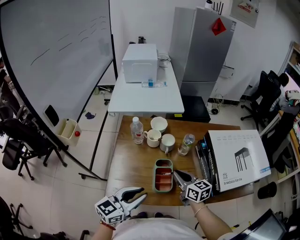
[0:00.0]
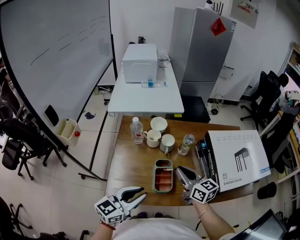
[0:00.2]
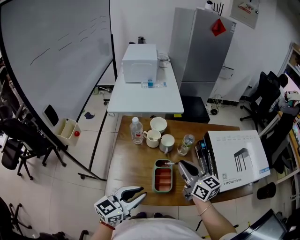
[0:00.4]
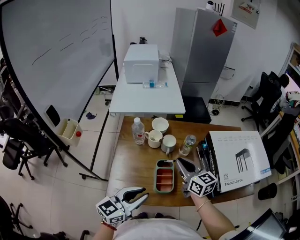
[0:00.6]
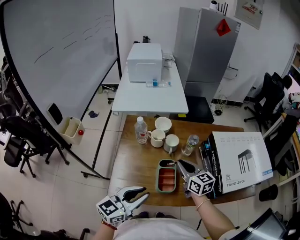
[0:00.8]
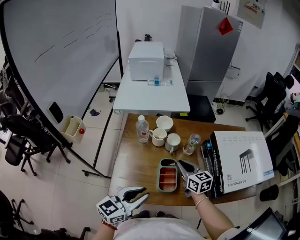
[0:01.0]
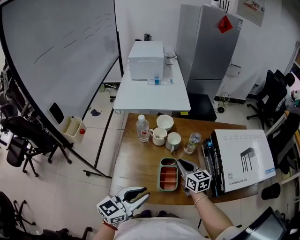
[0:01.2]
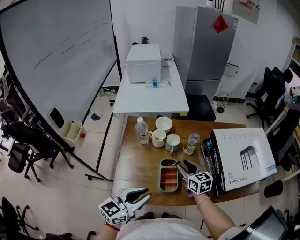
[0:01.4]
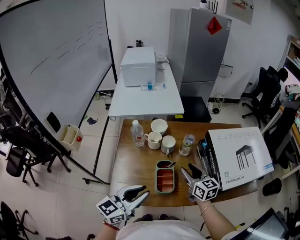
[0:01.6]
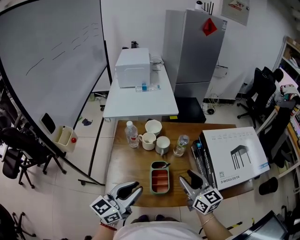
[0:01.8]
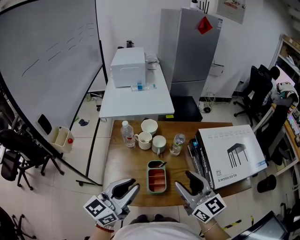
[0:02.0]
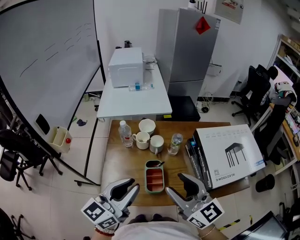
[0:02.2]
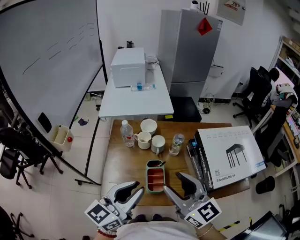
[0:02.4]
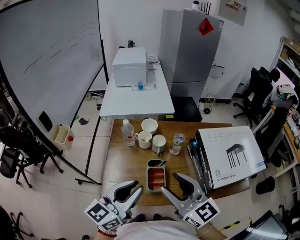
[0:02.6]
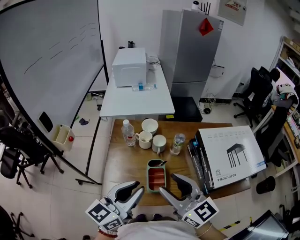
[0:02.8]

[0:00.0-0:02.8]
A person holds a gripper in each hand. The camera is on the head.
0:00.0 to 0:01.4: The right gripper goes upward and returns, about 10 cm each way, and opens up.
0:01.4 to 0:02.8: The left gripper heads upward, covering approximately 10 cm, while the right gripper goes some 25 cm upward and backward, and turns by some 30 degrees.

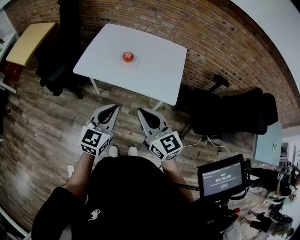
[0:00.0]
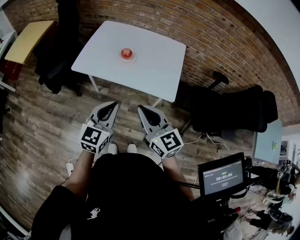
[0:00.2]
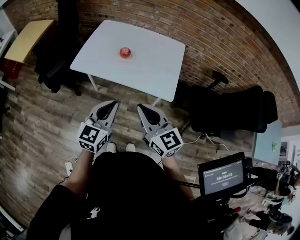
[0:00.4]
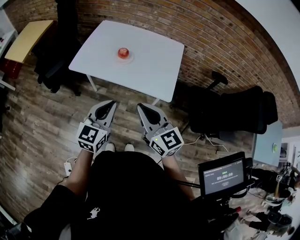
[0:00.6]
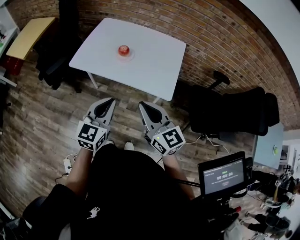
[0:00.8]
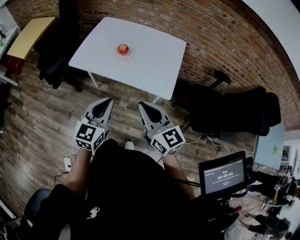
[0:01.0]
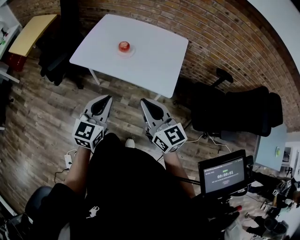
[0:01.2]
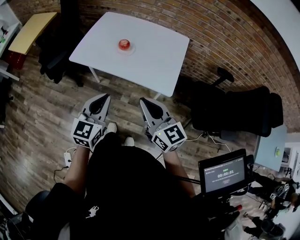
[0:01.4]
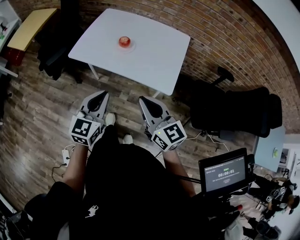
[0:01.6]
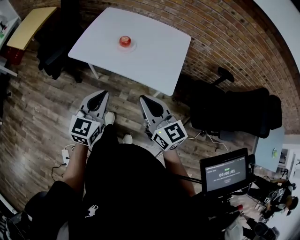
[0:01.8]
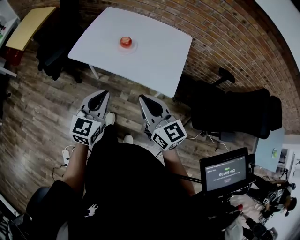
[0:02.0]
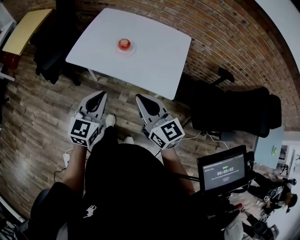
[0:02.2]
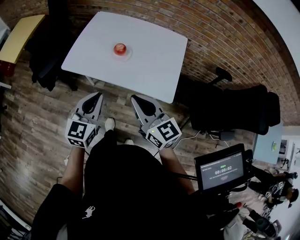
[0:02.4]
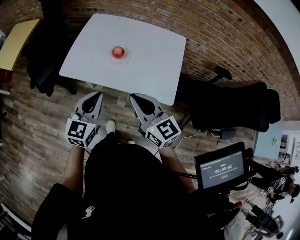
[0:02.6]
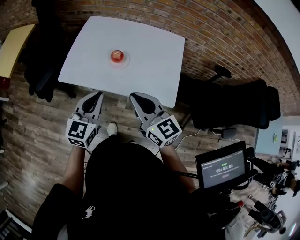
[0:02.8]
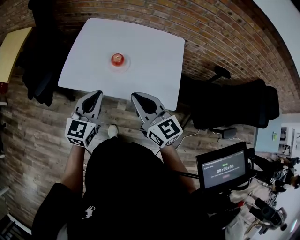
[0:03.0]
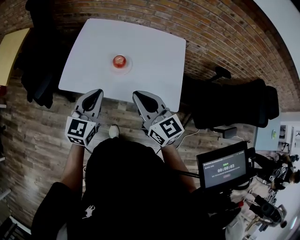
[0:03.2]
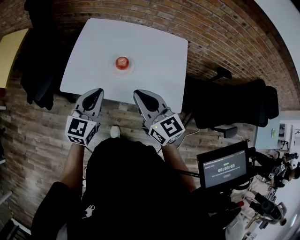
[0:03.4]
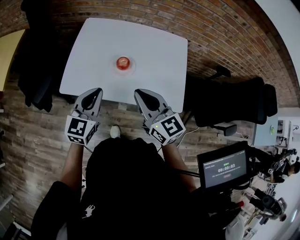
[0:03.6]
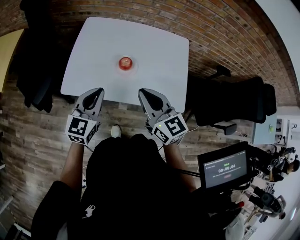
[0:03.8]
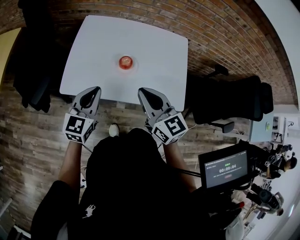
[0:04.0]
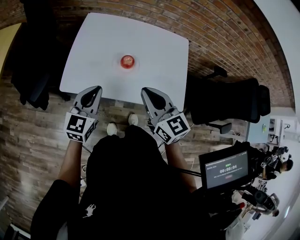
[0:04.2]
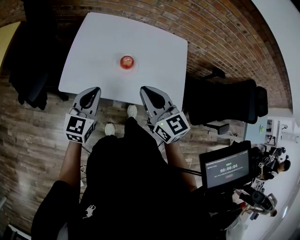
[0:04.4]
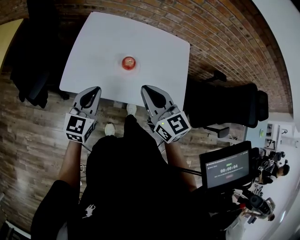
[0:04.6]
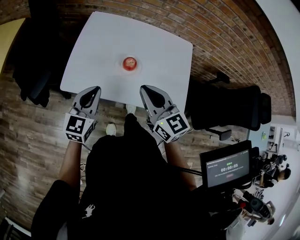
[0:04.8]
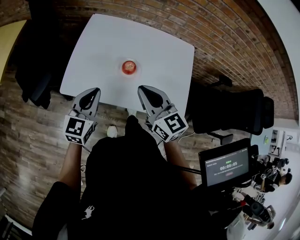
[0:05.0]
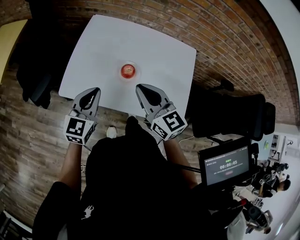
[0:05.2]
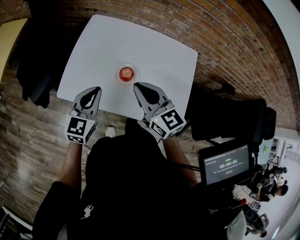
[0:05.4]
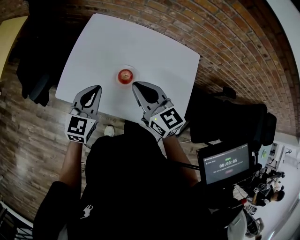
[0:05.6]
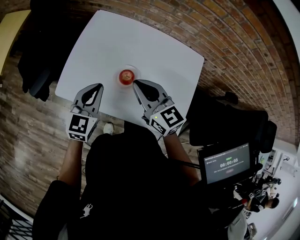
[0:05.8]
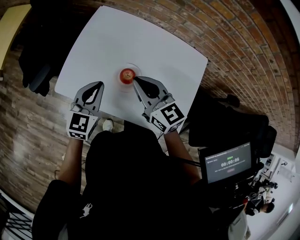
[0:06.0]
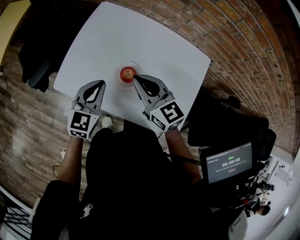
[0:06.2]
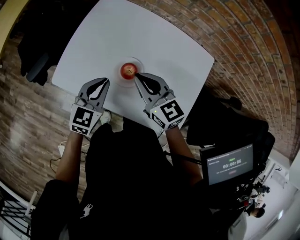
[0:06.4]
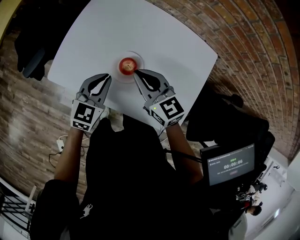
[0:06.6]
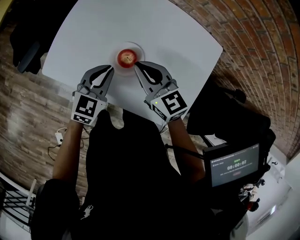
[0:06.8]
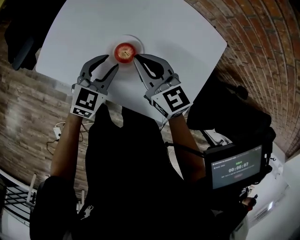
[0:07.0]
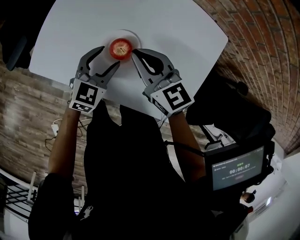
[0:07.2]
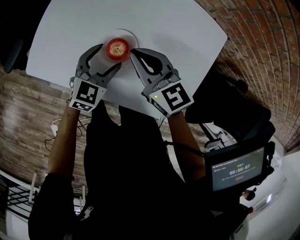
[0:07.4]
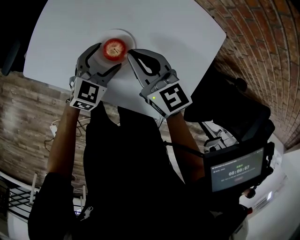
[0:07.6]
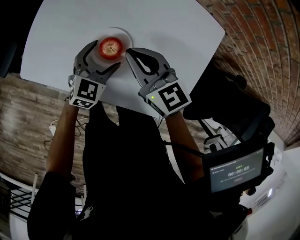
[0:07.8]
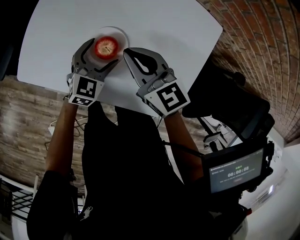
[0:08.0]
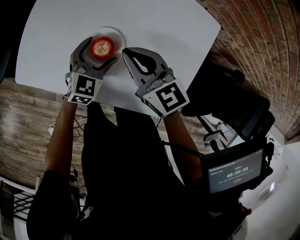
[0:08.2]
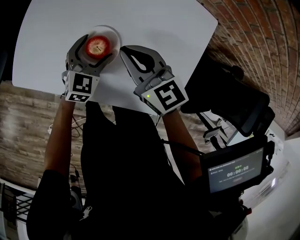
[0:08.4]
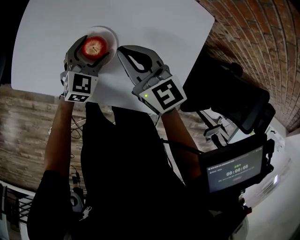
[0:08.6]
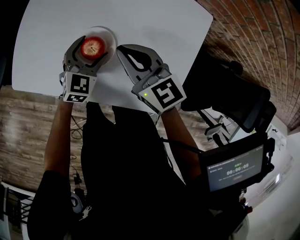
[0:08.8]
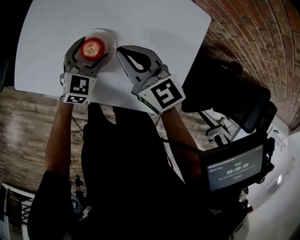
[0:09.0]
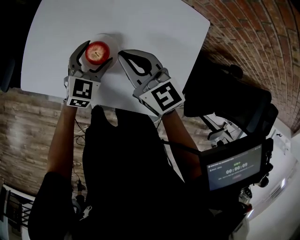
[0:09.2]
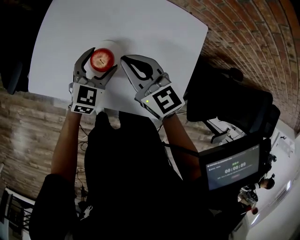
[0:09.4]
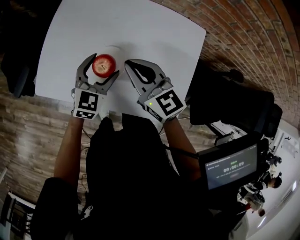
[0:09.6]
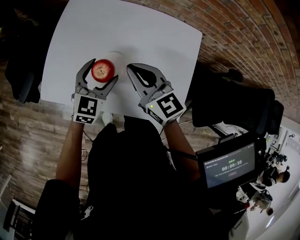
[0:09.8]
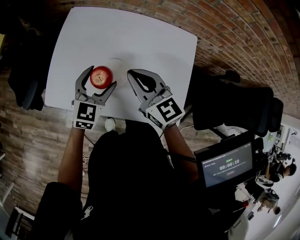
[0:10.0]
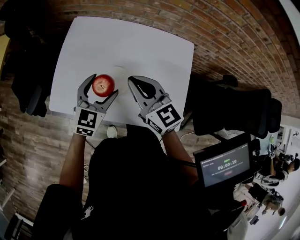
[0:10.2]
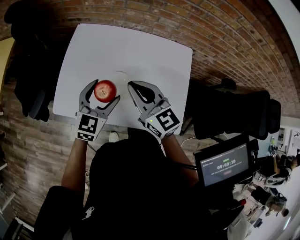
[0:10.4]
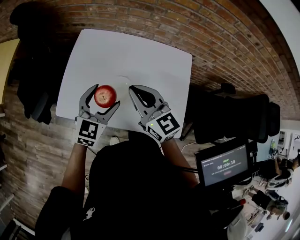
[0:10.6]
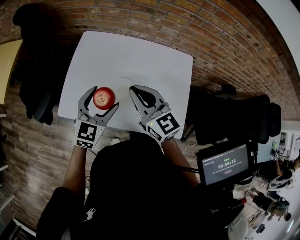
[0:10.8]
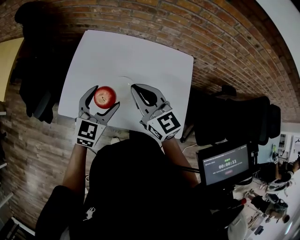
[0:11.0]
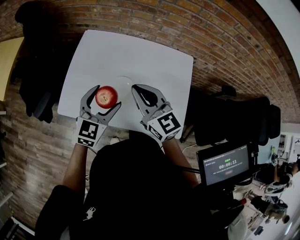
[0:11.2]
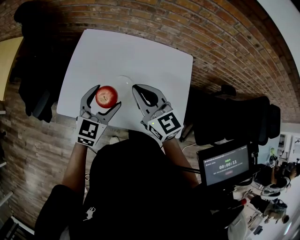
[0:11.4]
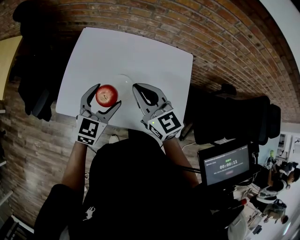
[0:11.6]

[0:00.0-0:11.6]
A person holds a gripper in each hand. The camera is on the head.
0:00.0 to 0:01.4: The right gripper shifts roughly 10 cm to the right.
0:01.4 to 0:02.8: Both grippers travel together forward, approximately 15 cm.
0:02.8 to 0:04.4: The right gripper shifts some 15 cm forward and to the left. Meanwhile the left gripper moves to the left and forward, some 15 cm.
0:04.4 to 0:05.8: The right gripper heads forward, covering roughly 15 cm. Meanwhile the left gripper travels forward and to the right by roughly 10 cm.
0:05.8 to 0:07.2: The left gripper shifts roughly 20 cm downward and to the right, and opens its fingers. Meanwhile the right gripper travels downward and forward by some 15 cm.
0:07.2 to 0:08.8: The left gripper ends up approximately 5 cm from where it was.
0:08.8 to 0:10.2: Both grippers travel together upward, some 15 cm.
0:10.2 to 0:11.6: The left gripper moves about 5 cm.

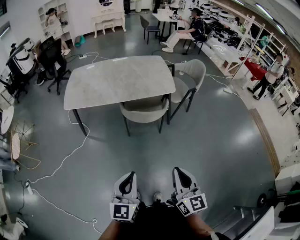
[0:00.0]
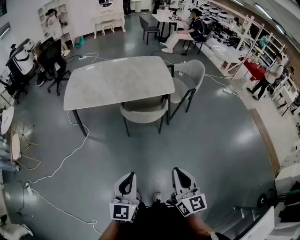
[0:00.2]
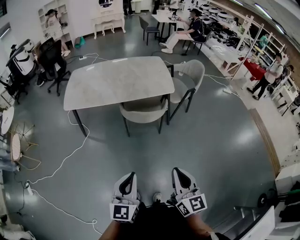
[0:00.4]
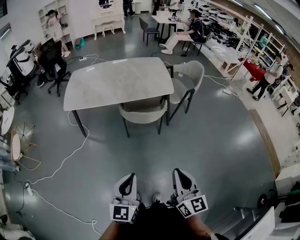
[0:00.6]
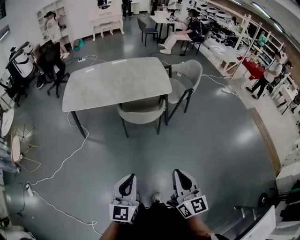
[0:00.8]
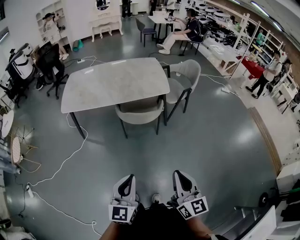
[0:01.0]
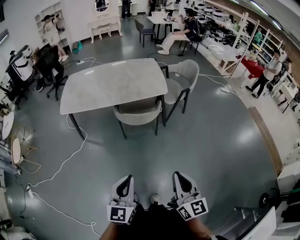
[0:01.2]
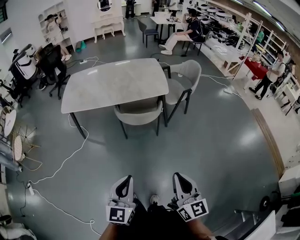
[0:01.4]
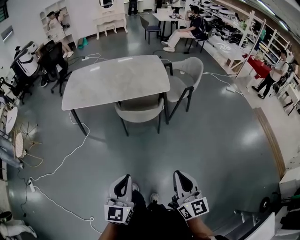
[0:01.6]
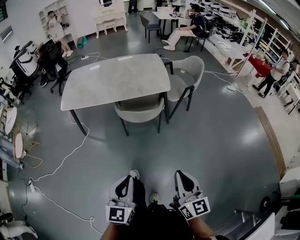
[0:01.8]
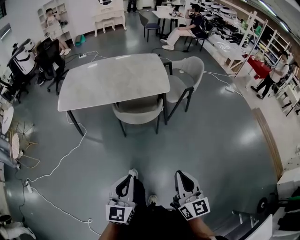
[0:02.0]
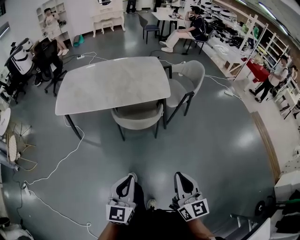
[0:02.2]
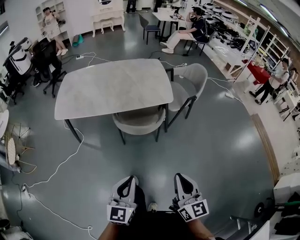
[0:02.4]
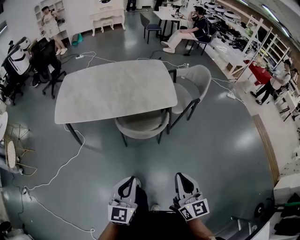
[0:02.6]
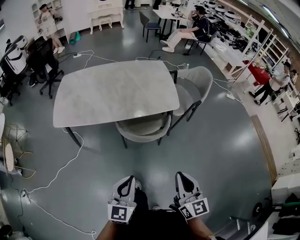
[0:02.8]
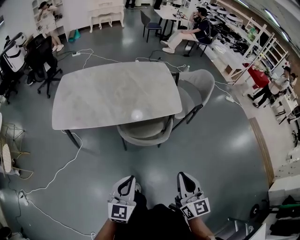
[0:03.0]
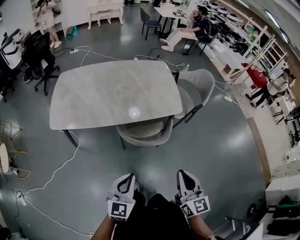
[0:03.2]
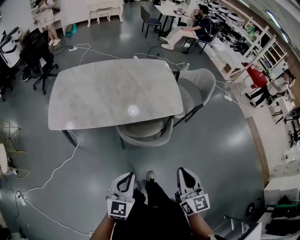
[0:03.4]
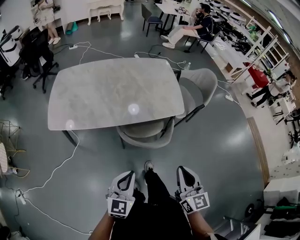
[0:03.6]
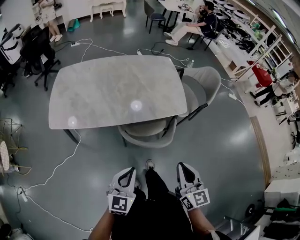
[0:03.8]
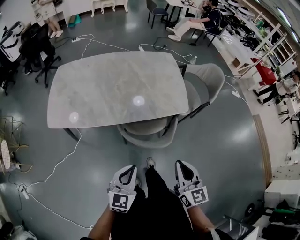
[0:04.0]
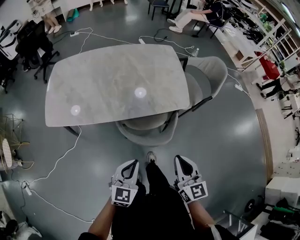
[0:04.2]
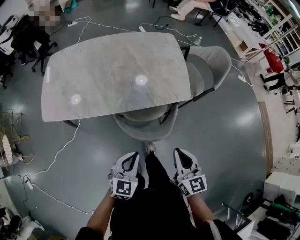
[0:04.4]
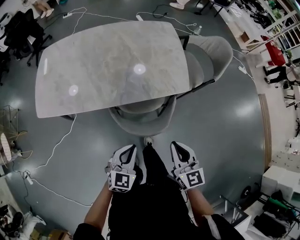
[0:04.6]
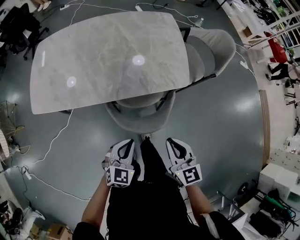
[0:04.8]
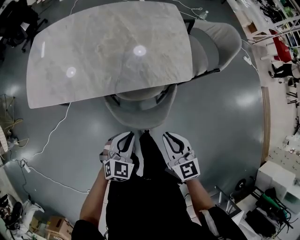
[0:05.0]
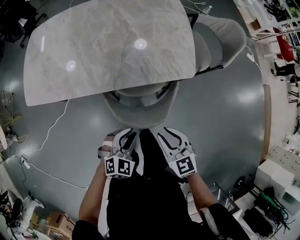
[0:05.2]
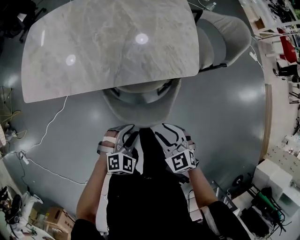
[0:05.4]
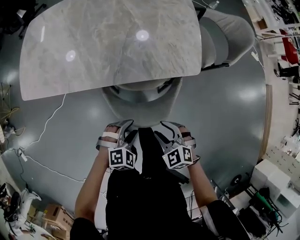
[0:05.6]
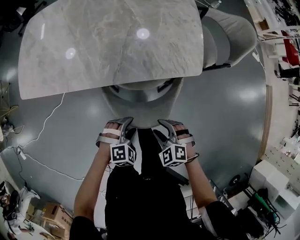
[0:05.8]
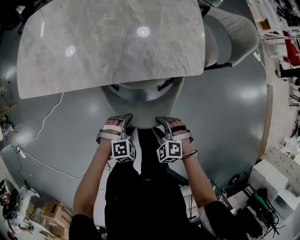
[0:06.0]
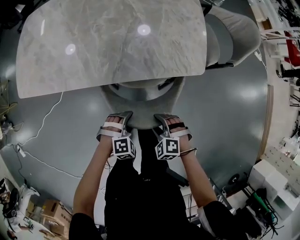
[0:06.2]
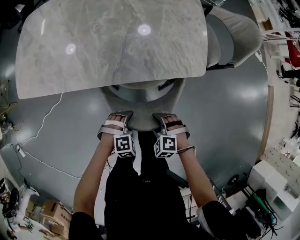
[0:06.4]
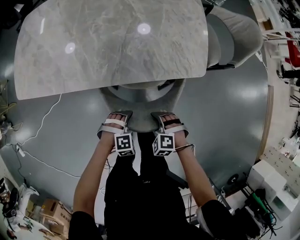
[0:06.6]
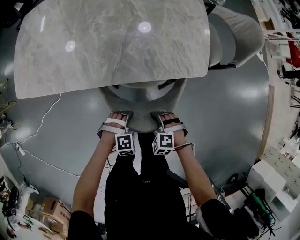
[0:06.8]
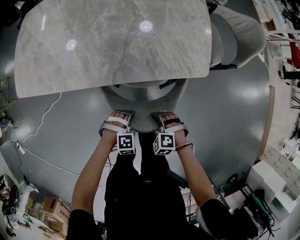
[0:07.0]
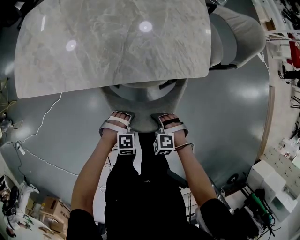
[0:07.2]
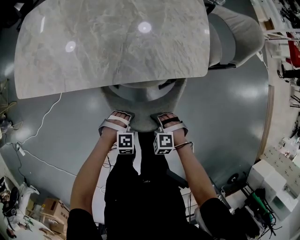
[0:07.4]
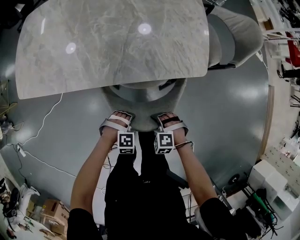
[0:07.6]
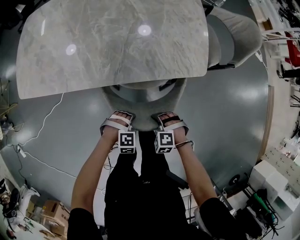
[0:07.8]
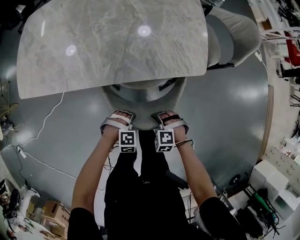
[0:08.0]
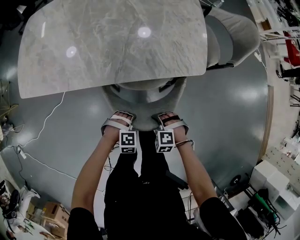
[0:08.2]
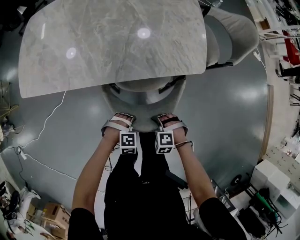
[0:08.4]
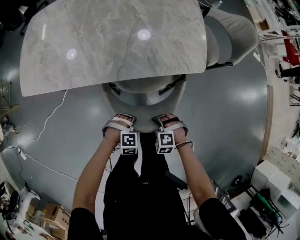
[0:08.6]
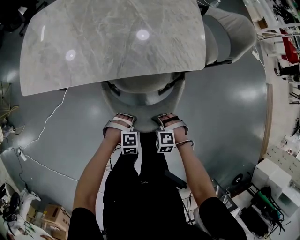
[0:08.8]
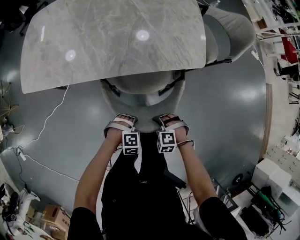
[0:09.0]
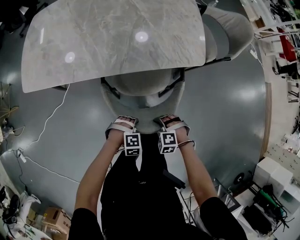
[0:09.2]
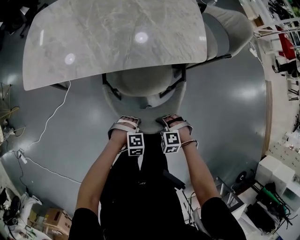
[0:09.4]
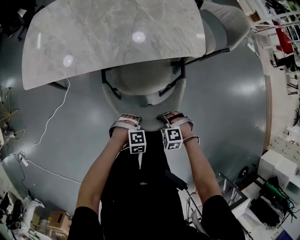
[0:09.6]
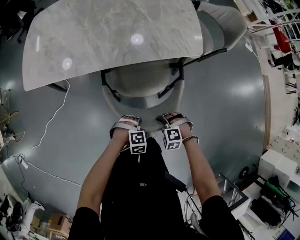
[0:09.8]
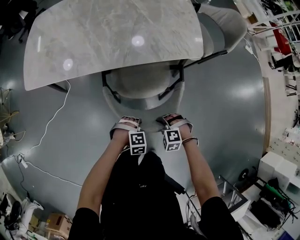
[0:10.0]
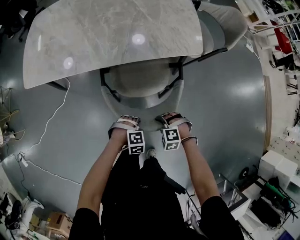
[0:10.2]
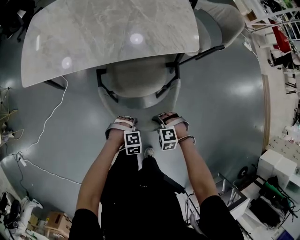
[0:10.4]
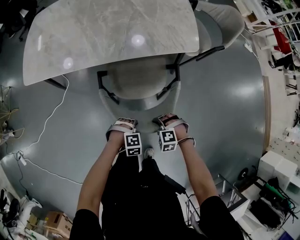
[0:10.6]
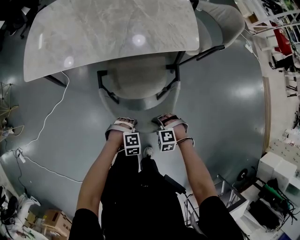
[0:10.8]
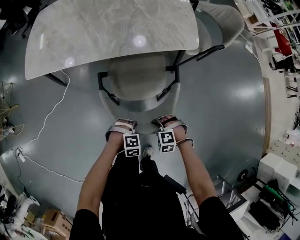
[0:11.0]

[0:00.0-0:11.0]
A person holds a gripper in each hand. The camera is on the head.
0:00.0 to 0:01.6: Both grippers travel together to the right, roughly 10 cm.
0:01.6 to 0:03.2: The grippers both shift forward and to the left by some 30 cm.
0:03.2 to 0:04.8: The two grippers go some 25 cm forward and downward. The left gripper swivels about 20 degrees. Meanwhile the right gripper turns by about 20 degrees.
0:04.8 to 0:06.2: The two grippers go about 20 cm downward. The left gripper tips its fingers downward by some 30 degrees, and opens its fingers; the right gripper tips its fingers downward by about 40 degrees, and opens.
0:06.2 to 0:07.8: The right gripper is displaced downward by some 5 cm, and closes its fingers. Meanwhile the left gripper closes up.
0:07.8 to 0:09.4: The right gripper moves roughly 10 cm, while the left gripper shifts by some 10 cm.
0:09.4 to 0:11.0: The right gripper shifts by roughly 10 cm, while the left gripper ends up roughly 10 cm from where it was.
